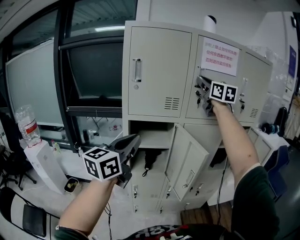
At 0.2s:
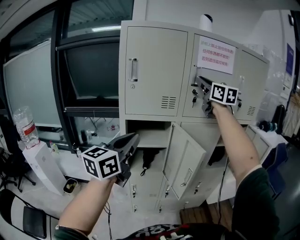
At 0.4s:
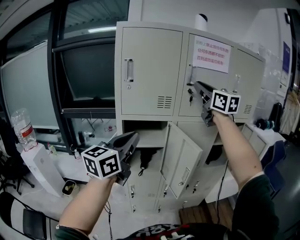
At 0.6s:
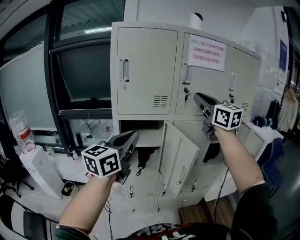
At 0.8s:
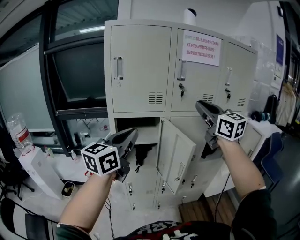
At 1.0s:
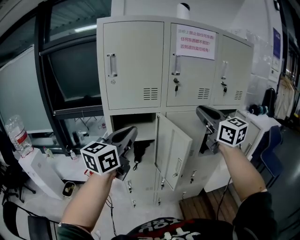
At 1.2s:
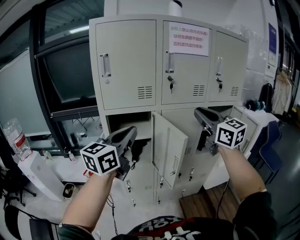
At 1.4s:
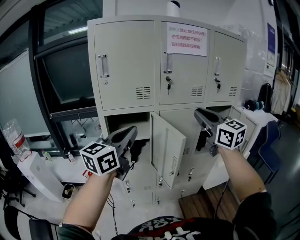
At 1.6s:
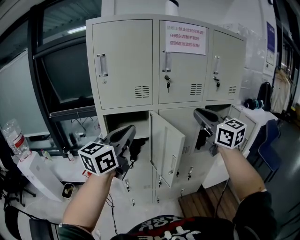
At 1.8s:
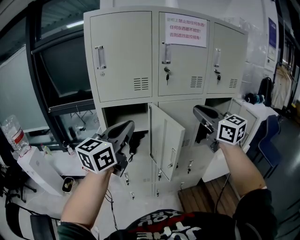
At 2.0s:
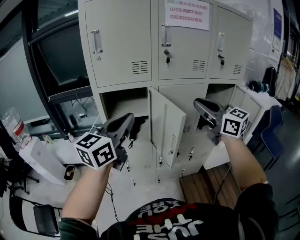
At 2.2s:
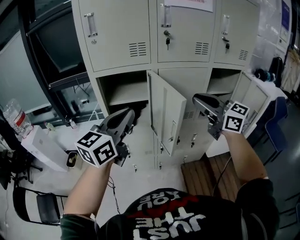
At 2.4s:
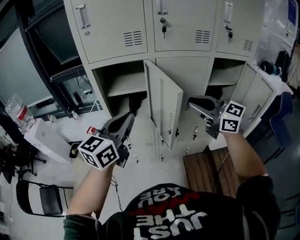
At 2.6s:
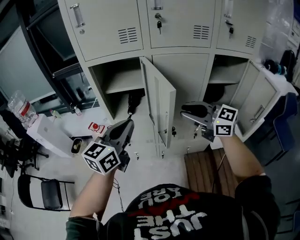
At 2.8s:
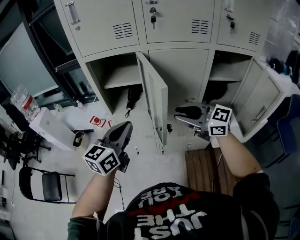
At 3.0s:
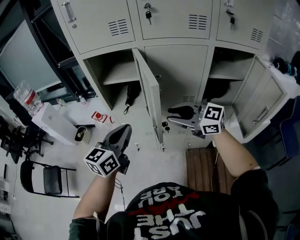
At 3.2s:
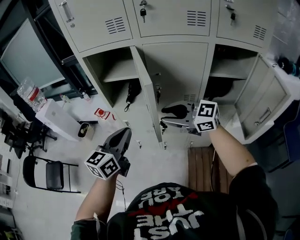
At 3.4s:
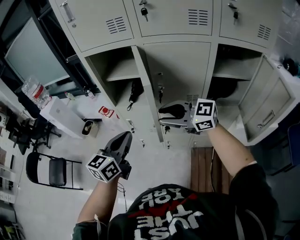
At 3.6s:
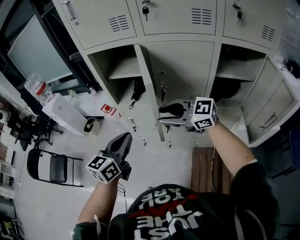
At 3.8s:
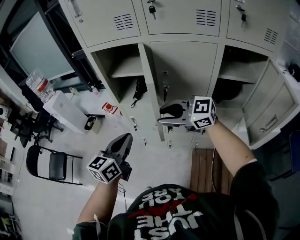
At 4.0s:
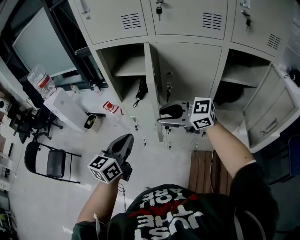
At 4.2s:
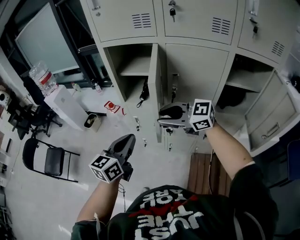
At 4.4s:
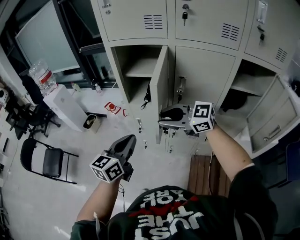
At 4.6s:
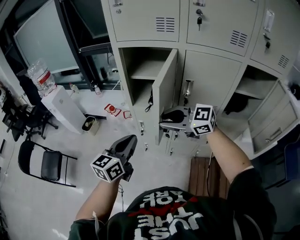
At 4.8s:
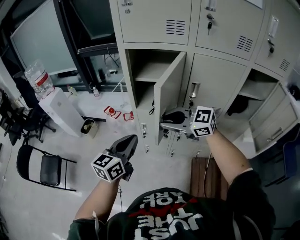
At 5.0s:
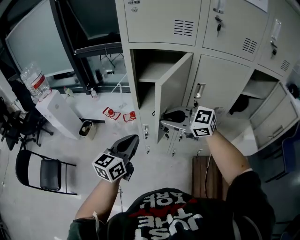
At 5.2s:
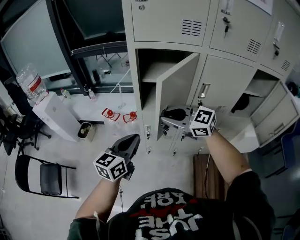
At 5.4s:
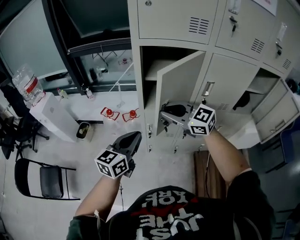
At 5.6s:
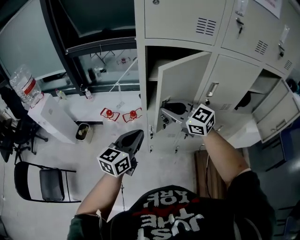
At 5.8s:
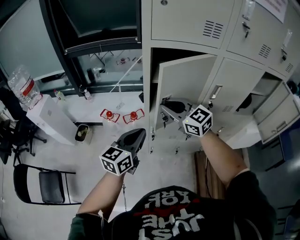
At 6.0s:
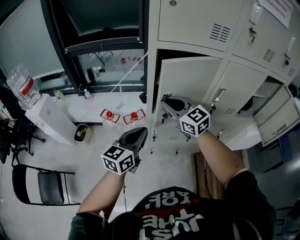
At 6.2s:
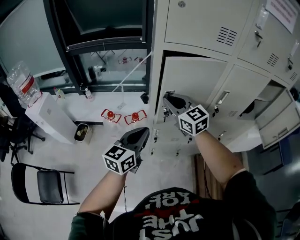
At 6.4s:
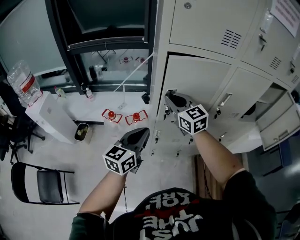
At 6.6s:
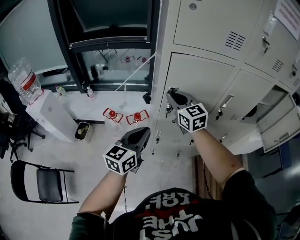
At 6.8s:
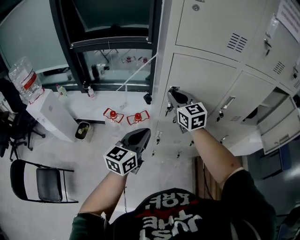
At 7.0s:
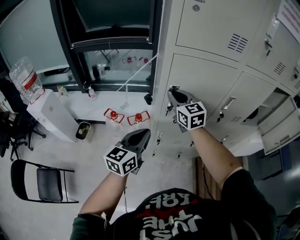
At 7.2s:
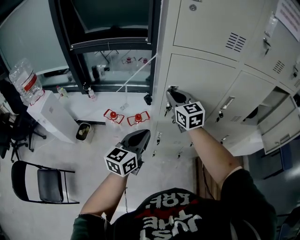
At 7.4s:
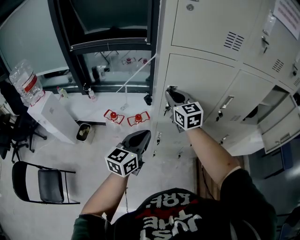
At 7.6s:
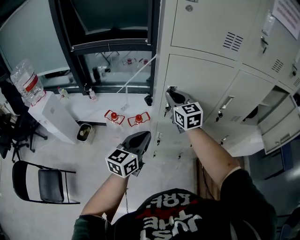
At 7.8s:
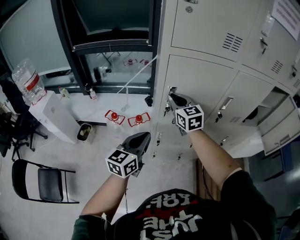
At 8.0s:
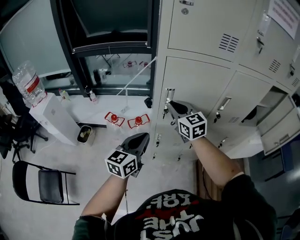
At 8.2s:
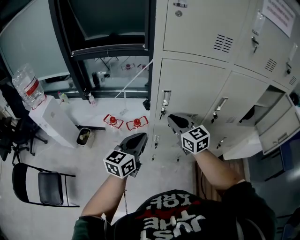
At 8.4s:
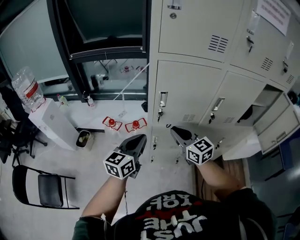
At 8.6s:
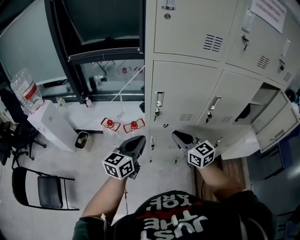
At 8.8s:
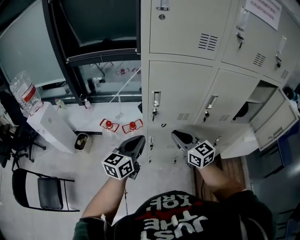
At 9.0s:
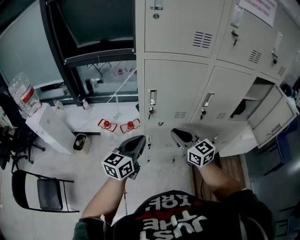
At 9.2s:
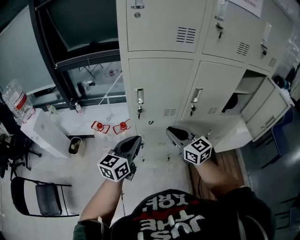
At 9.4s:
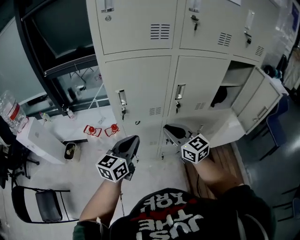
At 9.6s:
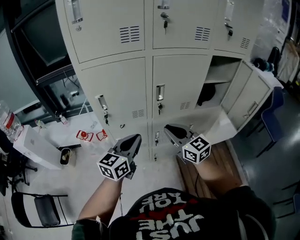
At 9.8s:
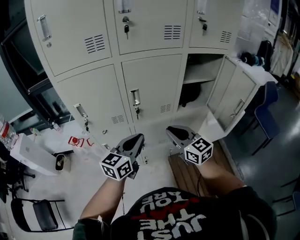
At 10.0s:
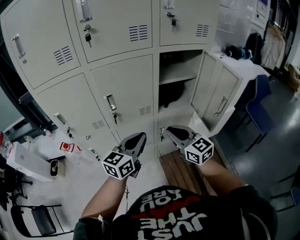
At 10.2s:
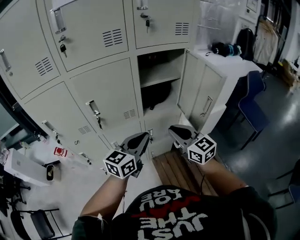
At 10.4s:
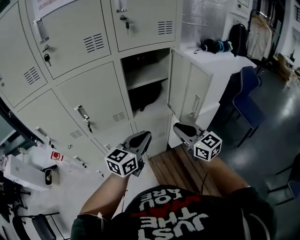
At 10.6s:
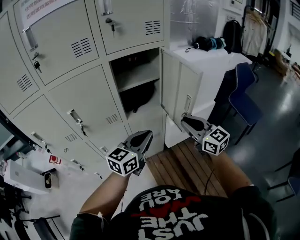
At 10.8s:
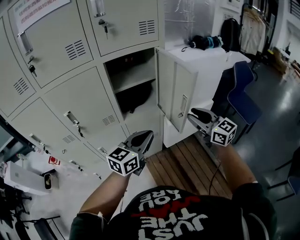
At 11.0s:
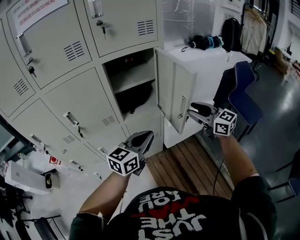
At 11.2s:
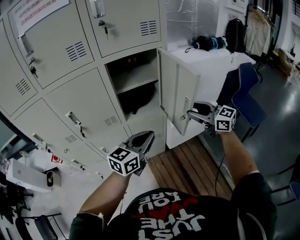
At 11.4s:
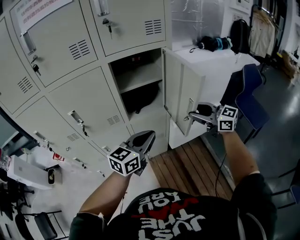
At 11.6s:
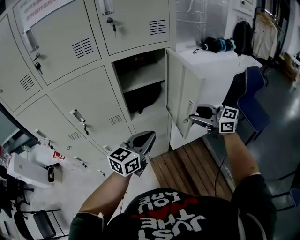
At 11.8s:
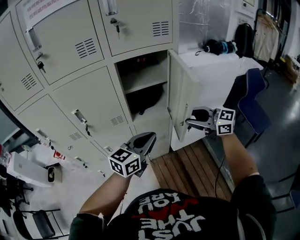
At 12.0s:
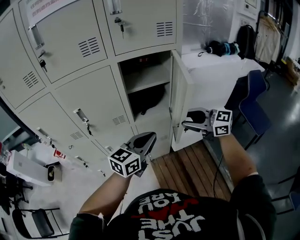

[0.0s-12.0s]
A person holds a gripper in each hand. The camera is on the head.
0.0s to 1.6s: The right gripper goes some 25 cm backward, downward and to the right. The left gripper goes about 10 cm to the right.
1.6s to 3.0s: The two grippers go approximately 25 cm downward. The left gripper swivels approximately 20 degrees; the right gripper turns by roughly 50 degrees.
3.0s to 4.4s: The right gripper is displaced to the left by some 10 cm. Meanwhile the left gripper travels to the left and downward by roughly 10 cm.
4.4s to 6.0s: The left gripper shifts by some 25 cm; the right gripper changes place by roughly 30 cm, and changes its angle by roughly 50 degrees.
6.0s to 7.6s: The right gripper heads forward, covering roughly 10 cm.
7.6s to 9.0s: The left gripper ends up roughly 5 cm from where it was, while the right gripper shifts roughly 20 cm backward and to the right.
9.0s to 10.4s: The two grippers travel together, to the right, roughly 60 cm. The left gripper rotates approximately 30 degrees.
10.4s to 12.0s: The right gripper goes to the right and returns, roughly 15 cm each way, rotates roughly 30 degrees, and opens.

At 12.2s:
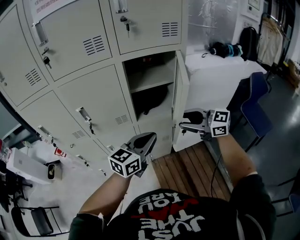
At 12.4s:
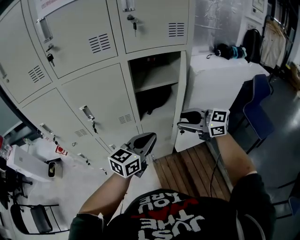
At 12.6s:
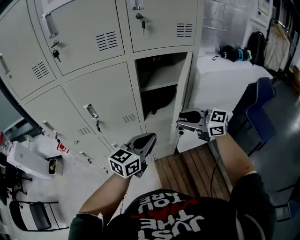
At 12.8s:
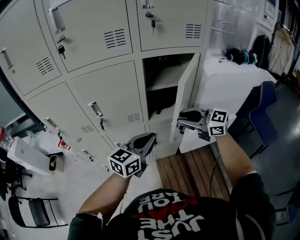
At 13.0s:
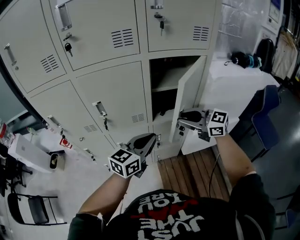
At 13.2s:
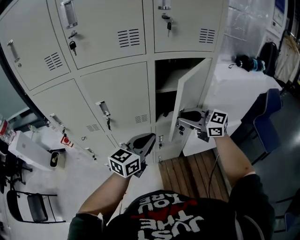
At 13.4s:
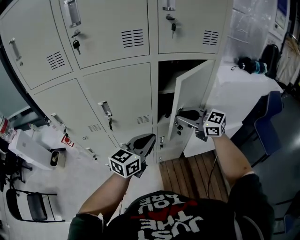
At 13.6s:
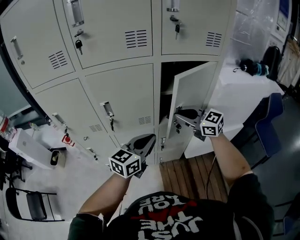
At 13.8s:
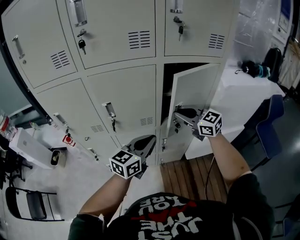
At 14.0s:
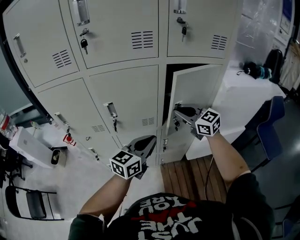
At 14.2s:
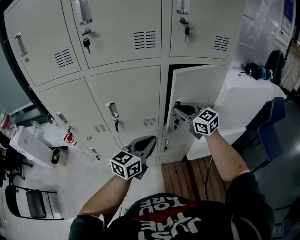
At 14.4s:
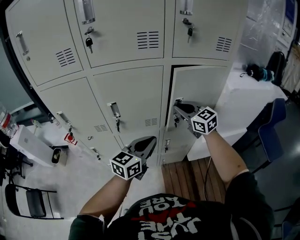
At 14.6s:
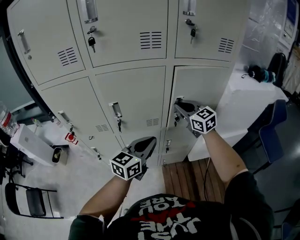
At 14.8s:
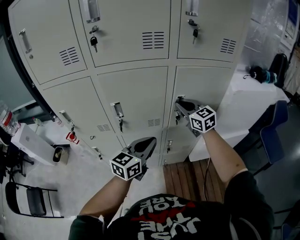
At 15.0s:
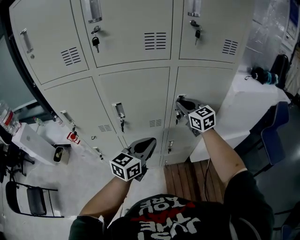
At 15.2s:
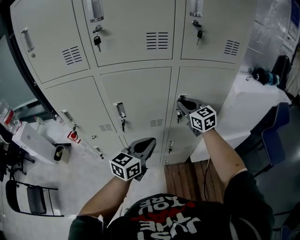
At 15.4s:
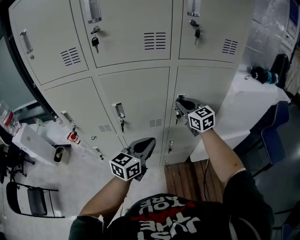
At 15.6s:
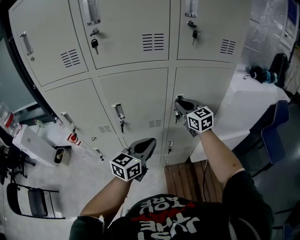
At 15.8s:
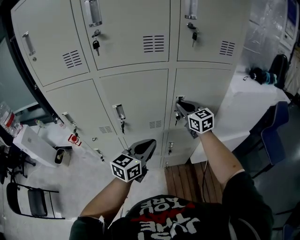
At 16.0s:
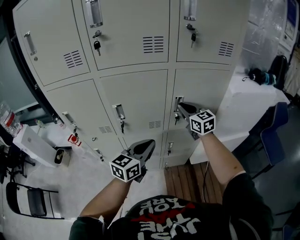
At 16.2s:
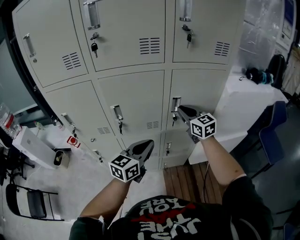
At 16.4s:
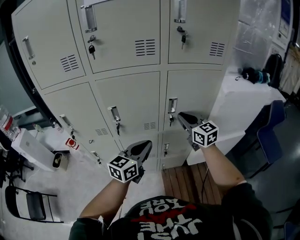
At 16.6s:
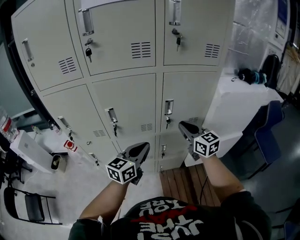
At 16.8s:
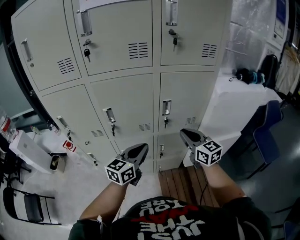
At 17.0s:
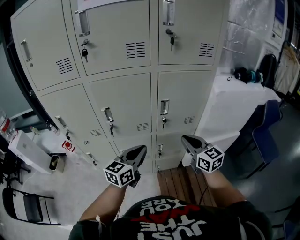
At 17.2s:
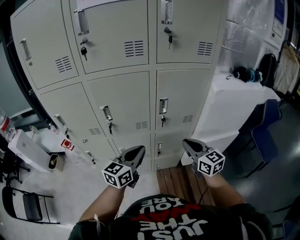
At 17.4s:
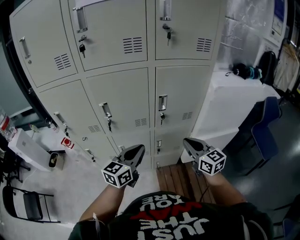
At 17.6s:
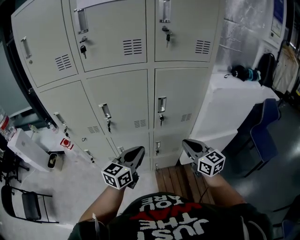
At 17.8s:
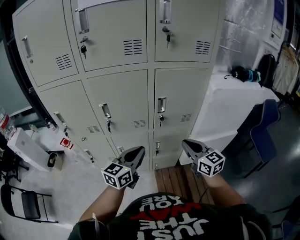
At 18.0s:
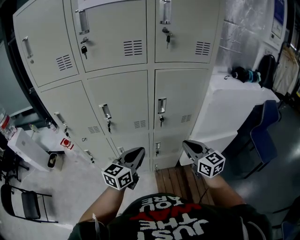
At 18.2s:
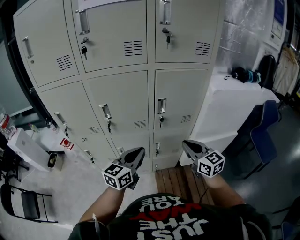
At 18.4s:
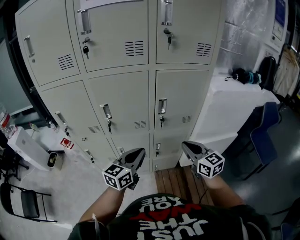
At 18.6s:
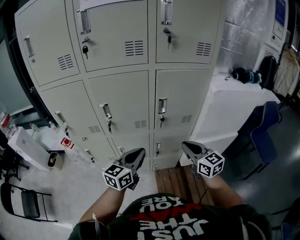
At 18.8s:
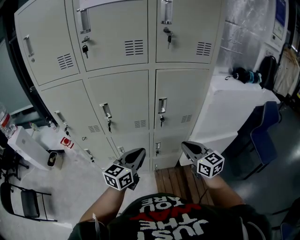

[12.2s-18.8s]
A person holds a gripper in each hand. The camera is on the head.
12.2s to 13.8s: The right gripper travels forward and to the left by approximately 20 cm, and closes. The left gripper heads to the left and forward, covering approximately 15 cm.
13.8s to 15.4s: The right gripper is displaced forward by about 10 cm.
15.4s to 17.2s: The right gripper is displaced backward and to the right by roughly 20 cm; the left gripper moves about 5 cm.
17.2s to 18.8s: The grippers stay close to where they were, moving slightly.

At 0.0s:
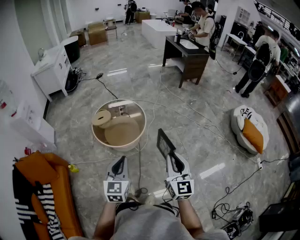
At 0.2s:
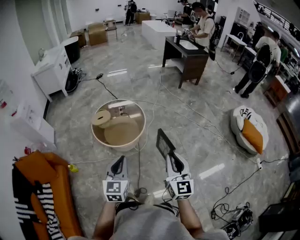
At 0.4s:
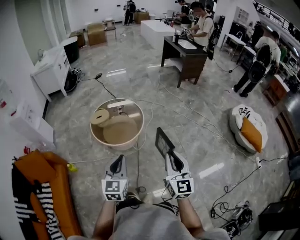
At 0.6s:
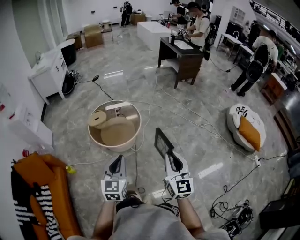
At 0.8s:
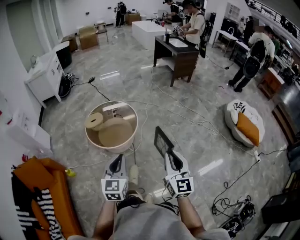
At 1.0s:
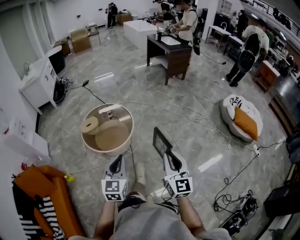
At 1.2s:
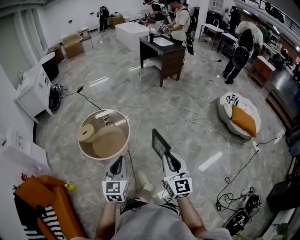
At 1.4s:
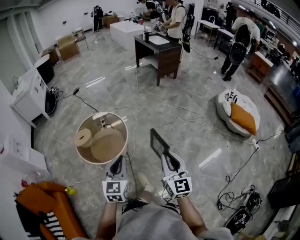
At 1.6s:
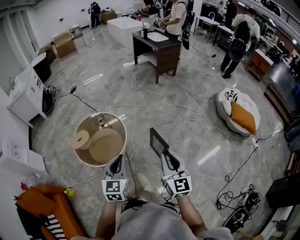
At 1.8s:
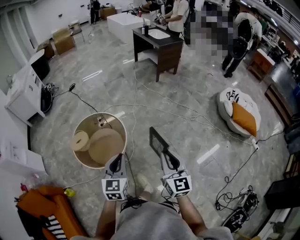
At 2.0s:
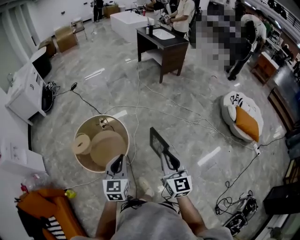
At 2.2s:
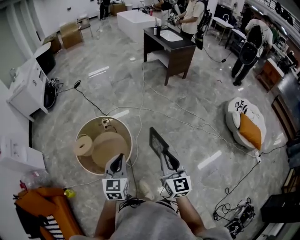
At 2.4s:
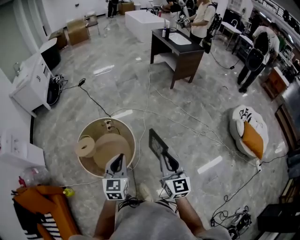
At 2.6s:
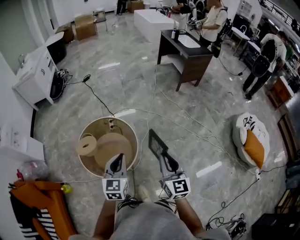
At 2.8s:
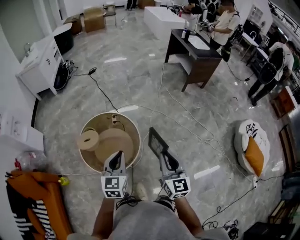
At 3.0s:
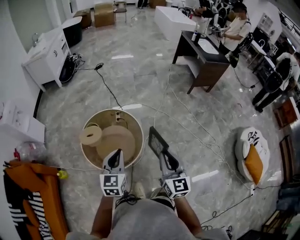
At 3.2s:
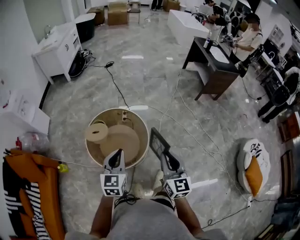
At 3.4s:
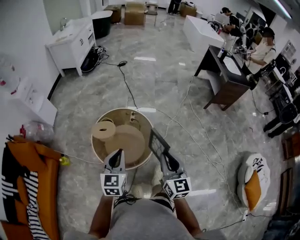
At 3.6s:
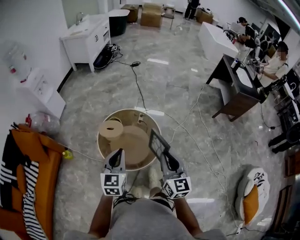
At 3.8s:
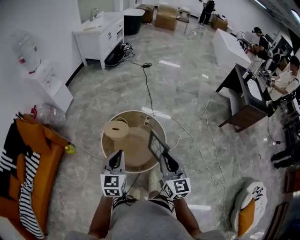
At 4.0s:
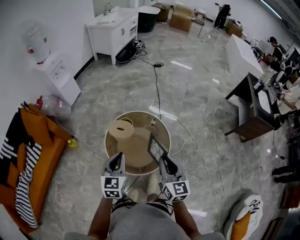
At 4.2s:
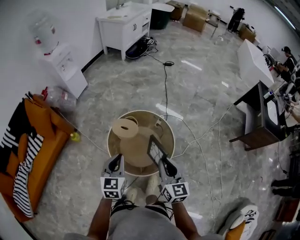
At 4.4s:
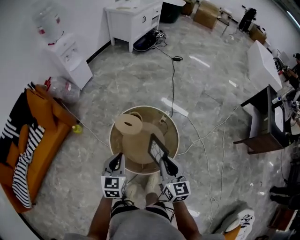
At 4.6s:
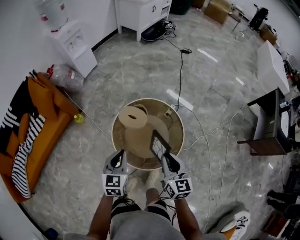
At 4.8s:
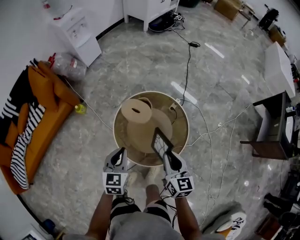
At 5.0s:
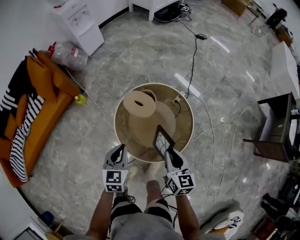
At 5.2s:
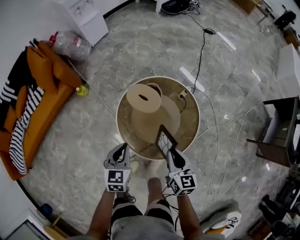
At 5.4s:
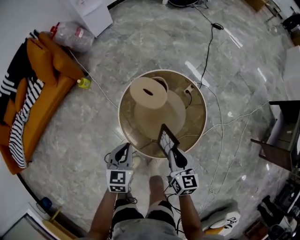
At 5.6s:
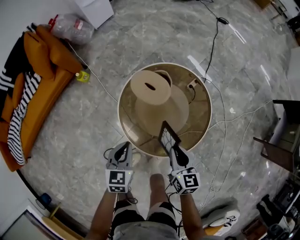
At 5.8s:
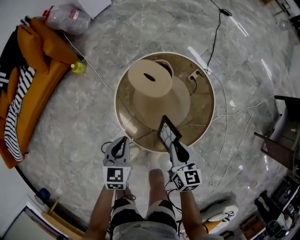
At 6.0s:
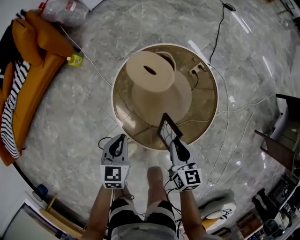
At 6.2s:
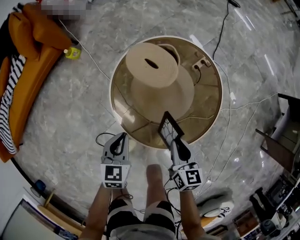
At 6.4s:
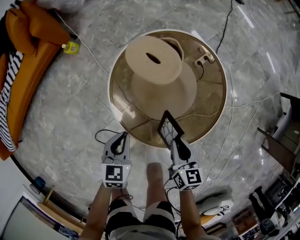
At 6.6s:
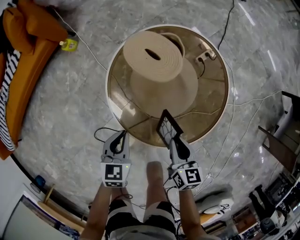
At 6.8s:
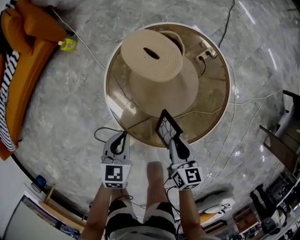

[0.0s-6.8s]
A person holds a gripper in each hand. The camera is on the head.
0.0s to 1.4s: The right gripper is displaced to the right and forward by approximately 10 cm, while the left gripper travels forward and to the right by approximately 15 cm.
1.4s to 2.8s: The grippers both shift forward by about 35 cm.
2.8s to 4.0s: The left gripper changes place by some 20 cm, and changes its angle by approximately 30 degrees. The right gripper moves approximately 25 cm, and changes its angle by some 40 degrees.
4.0s to 5.4s: The right gripper shifts some 35 cm downward and forward, and changes its angle by some 30 degrees, while the left gripper goes approximately 30 cm downward, and rotates about 30 degrees.
5.4s to 6.8s: Both grippers move downward, approximately 25 cm.
